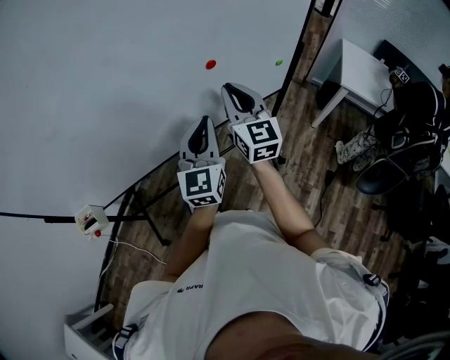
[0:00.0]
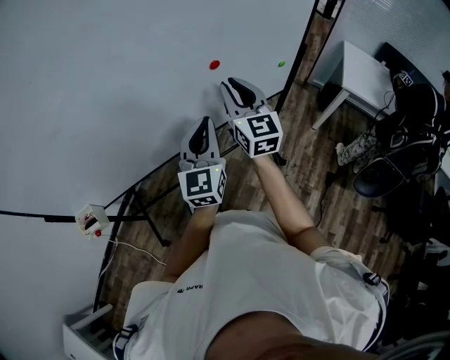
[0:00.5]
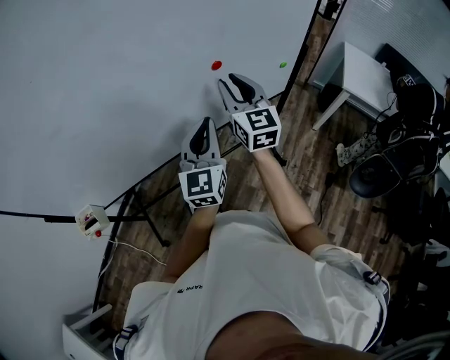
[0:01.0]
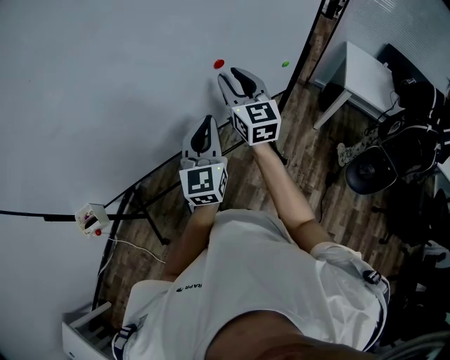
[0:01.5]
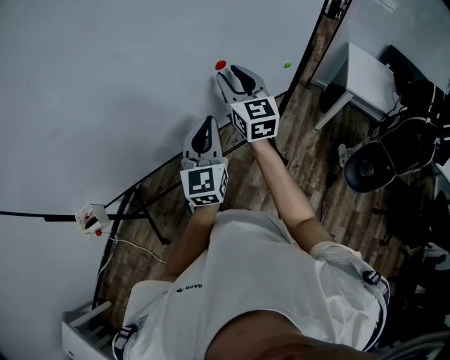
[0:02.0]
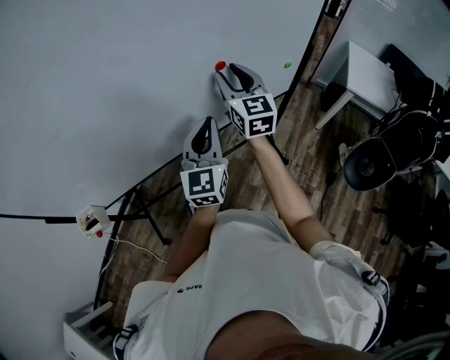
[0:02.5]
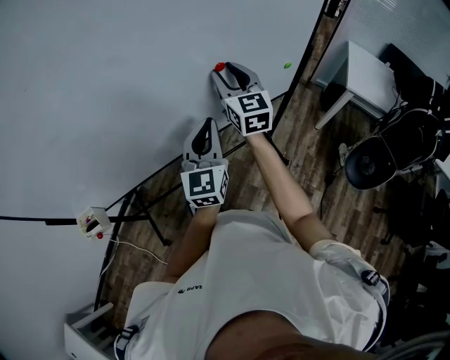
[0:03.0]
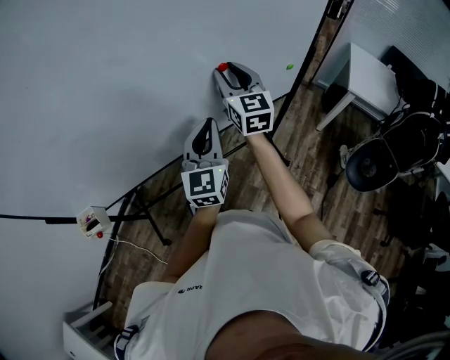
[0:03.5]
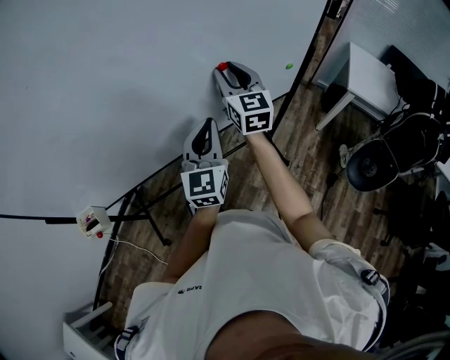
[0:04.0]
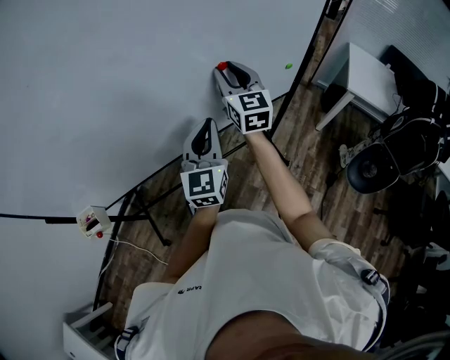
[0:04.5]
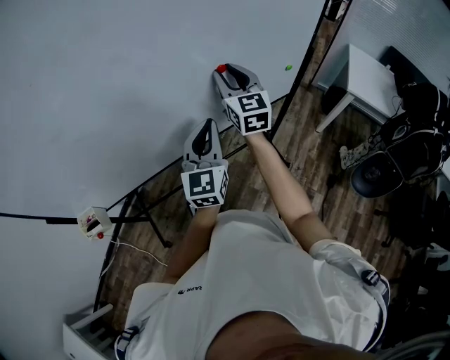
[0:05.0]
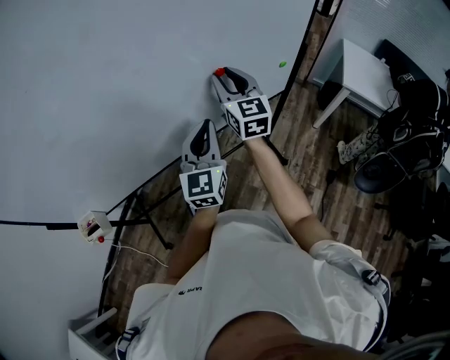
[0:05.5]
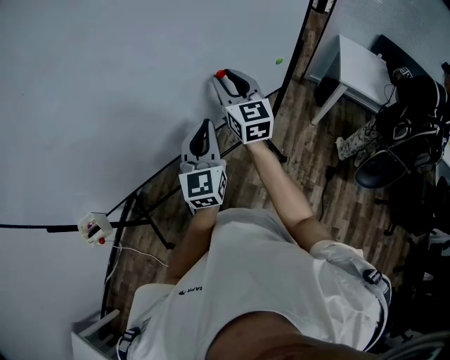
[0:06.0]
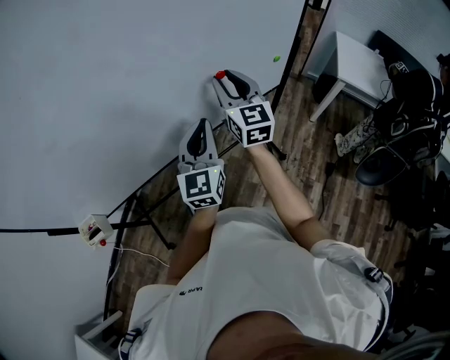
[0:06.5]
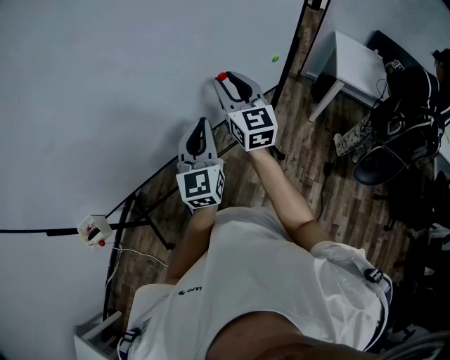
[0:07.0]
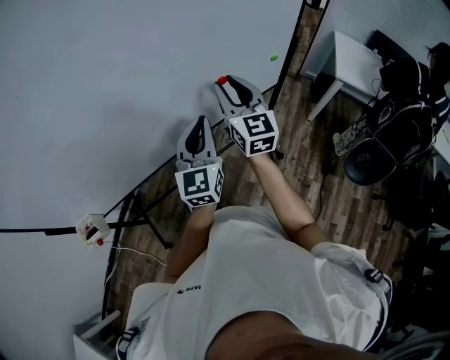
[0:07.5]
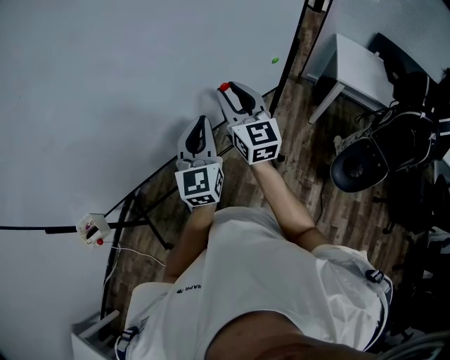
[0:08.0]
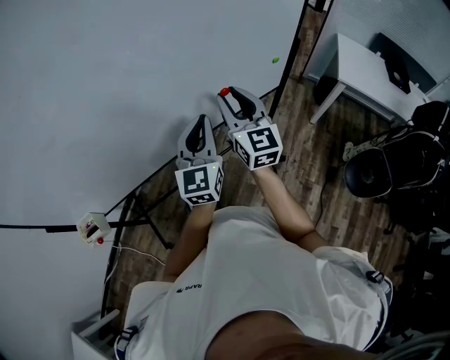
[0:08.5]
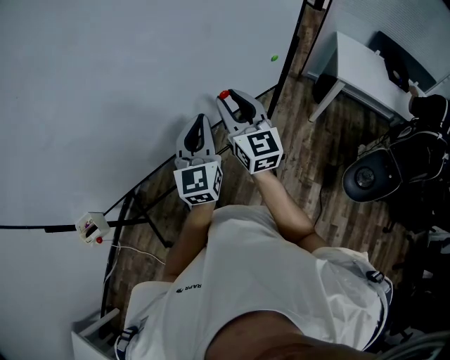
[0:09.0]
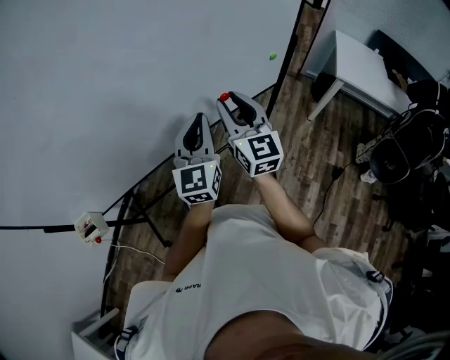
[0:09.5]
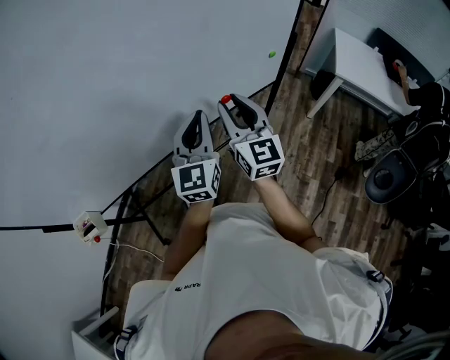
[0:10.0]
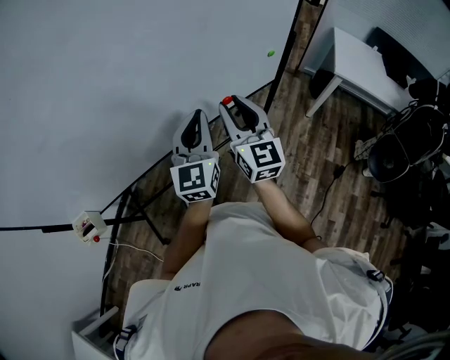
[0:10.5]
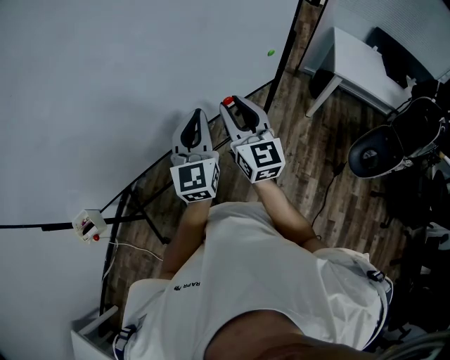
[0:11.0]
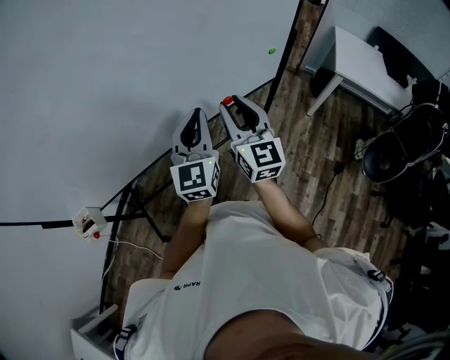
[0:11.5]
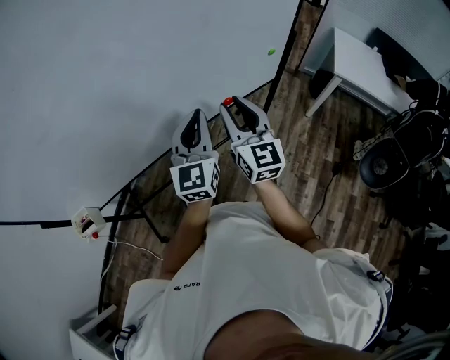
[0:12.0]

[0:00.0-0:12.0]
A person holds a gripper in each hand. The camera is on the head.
0:00.0 to 0:02.0: The right gripper travels forward by about 5 cm, and opens.
0:02.0 to 0:06.0: The grippers make only small movements.
0:06.0 to 0:08.0: The right gripper moves backward, roughly 5 cm.
0:08.0 to 0:10.0: The grippers make only small movements.
0:10.0 to 0:12.0: The grippers move only a little.

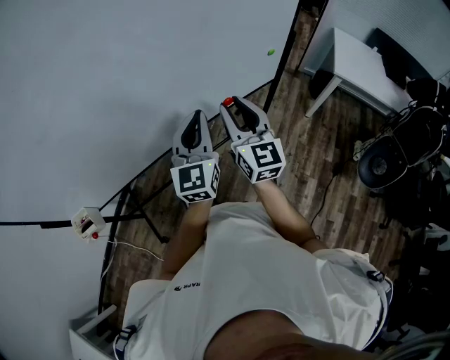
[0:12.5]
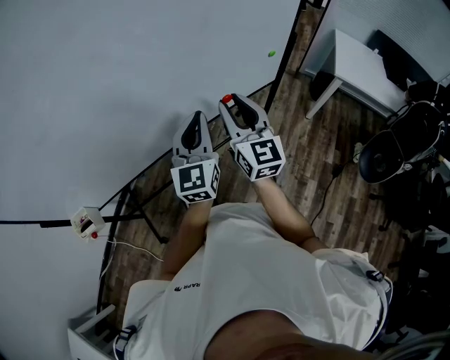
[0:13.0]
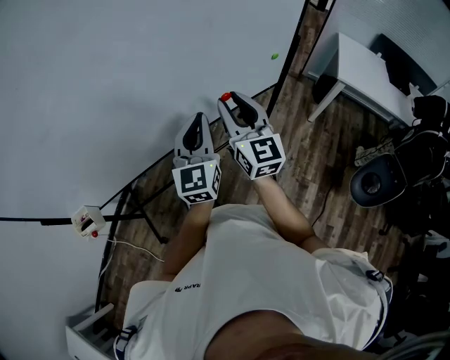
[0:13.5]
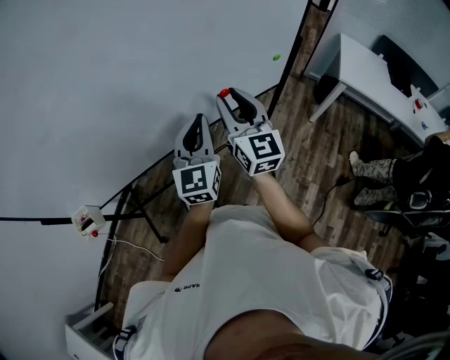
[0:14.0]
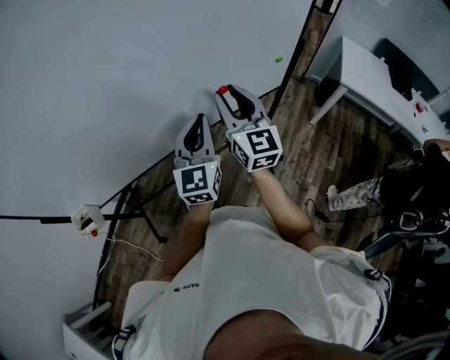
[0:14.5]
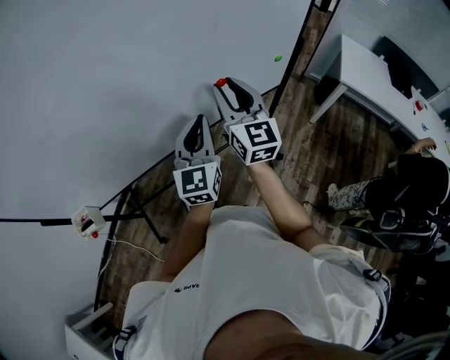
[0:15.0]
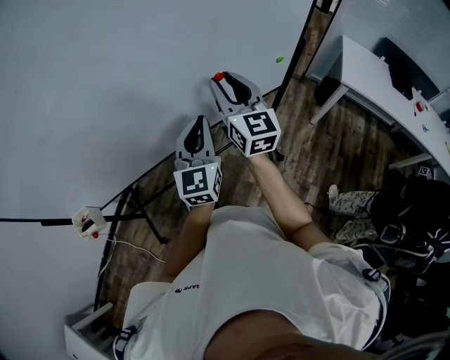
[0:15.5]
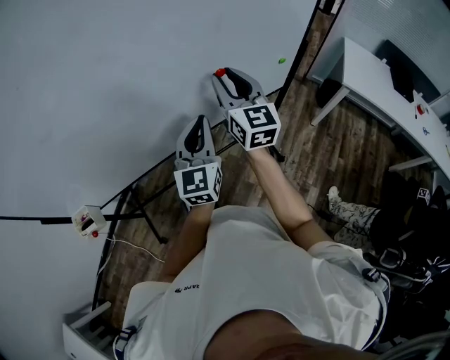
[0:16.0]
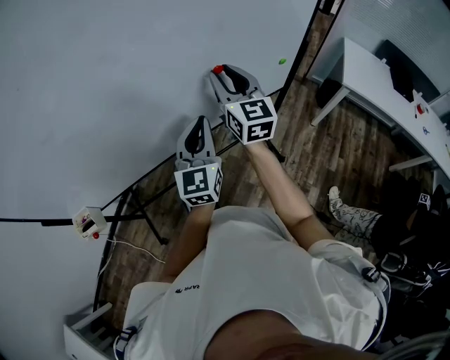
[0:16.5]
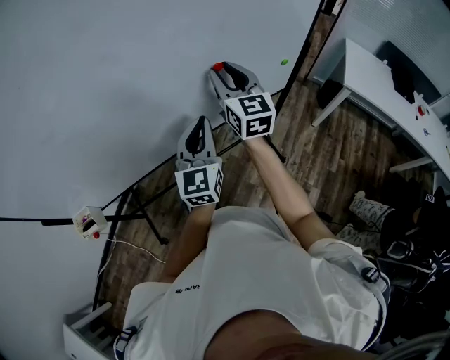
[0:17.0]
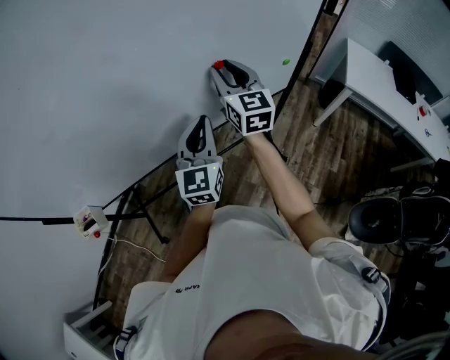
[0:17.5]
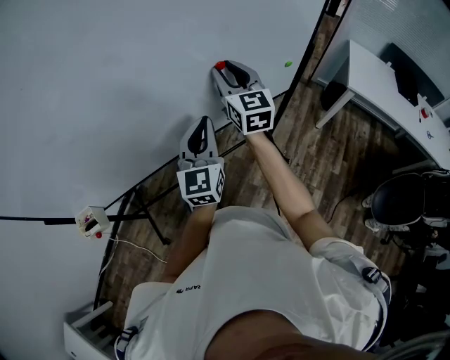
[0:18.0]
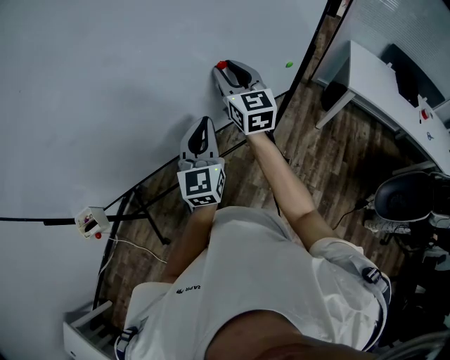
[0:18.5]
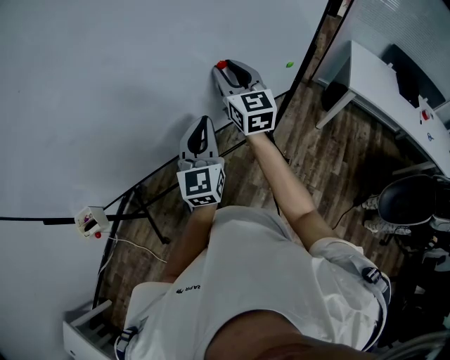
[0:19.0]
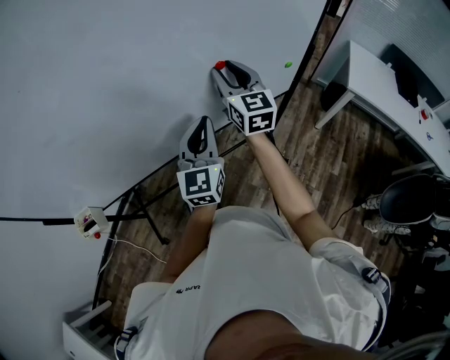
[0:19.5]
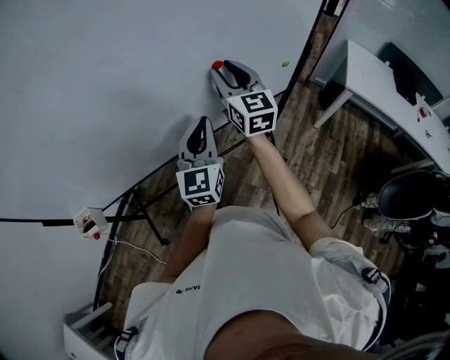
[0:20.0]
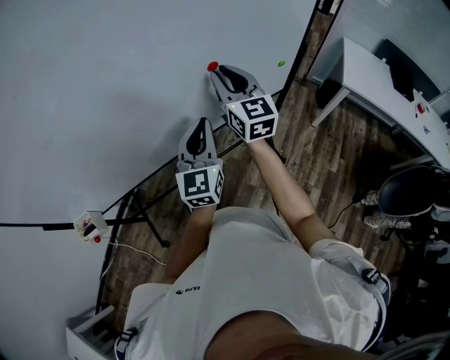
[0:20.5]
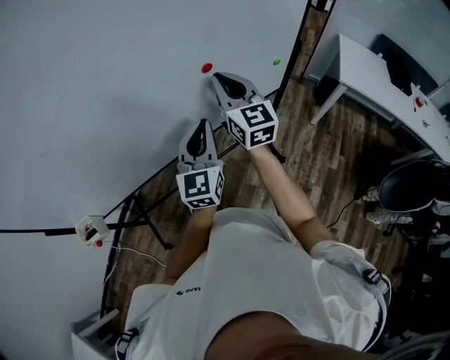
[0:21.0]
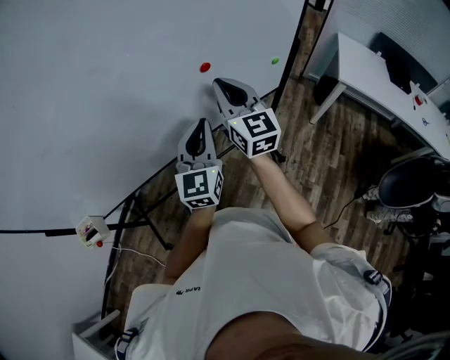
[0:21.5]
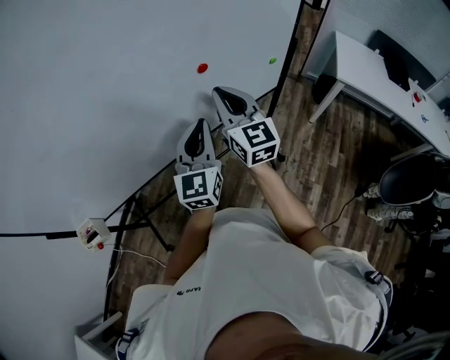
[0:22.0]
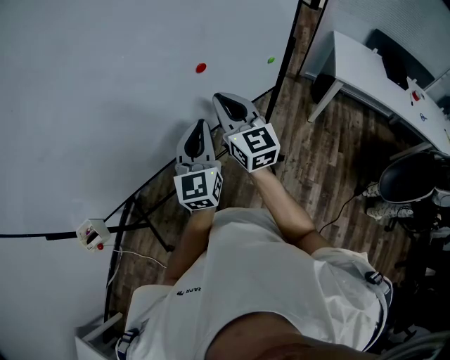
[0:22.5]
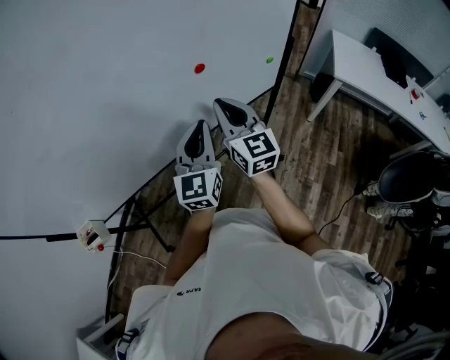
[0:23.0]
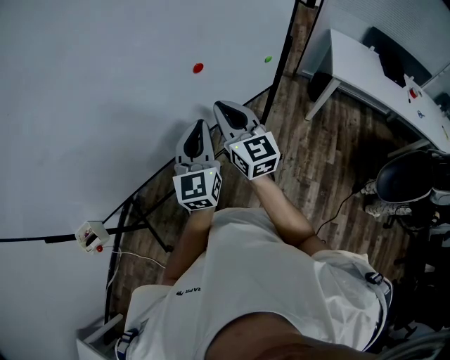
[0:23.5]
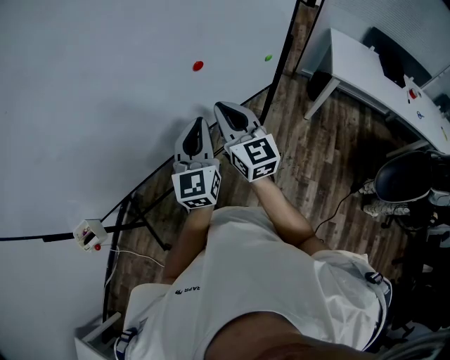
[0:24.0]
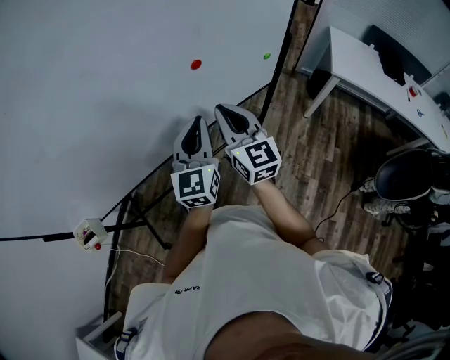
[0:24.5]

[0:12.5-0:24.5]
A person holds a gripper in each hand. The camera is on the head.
0:12.5 to 0:14.5: The right gripper changes place by some 5 cm.
0:14.5 to 0:16.5: The right gripper moves forward, some 5 cm.
0:16.5 to 0:20.5: The grippers move only a little.
0:20.5 to 0:22.5: The right gripper shifts approximately 5 cm backward.
0:22.5 to 0:24.5: There are only small adjustments of the grippers.

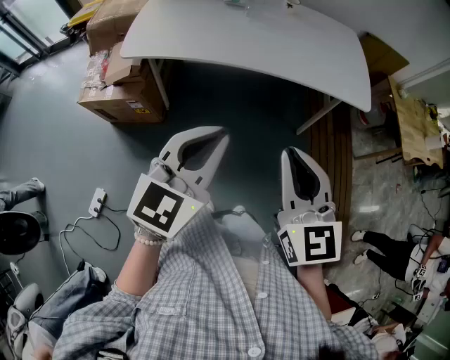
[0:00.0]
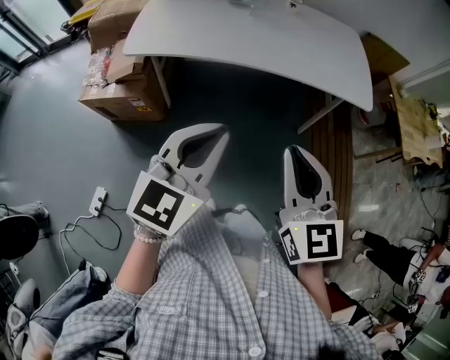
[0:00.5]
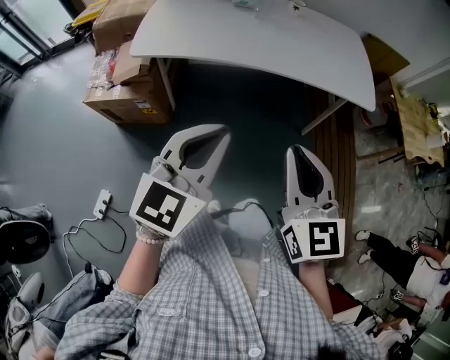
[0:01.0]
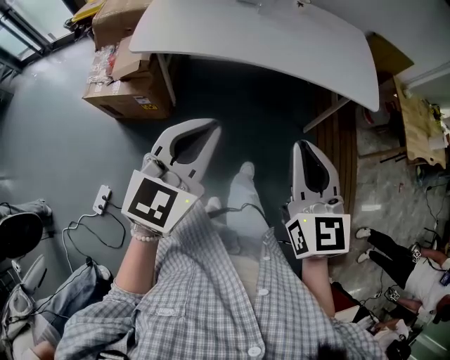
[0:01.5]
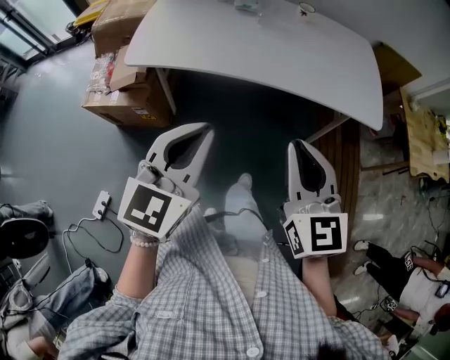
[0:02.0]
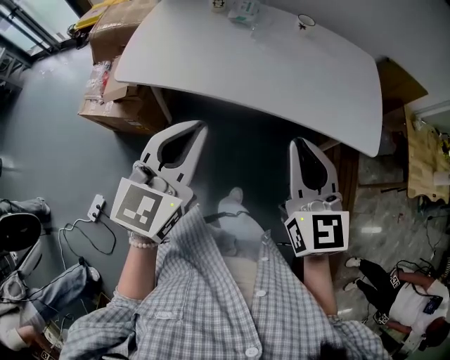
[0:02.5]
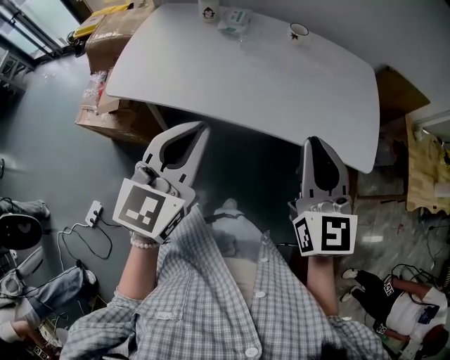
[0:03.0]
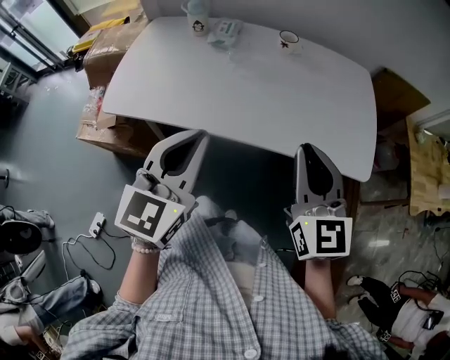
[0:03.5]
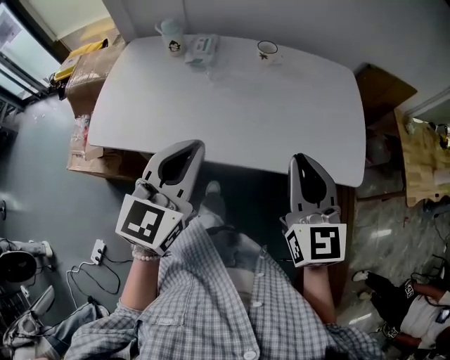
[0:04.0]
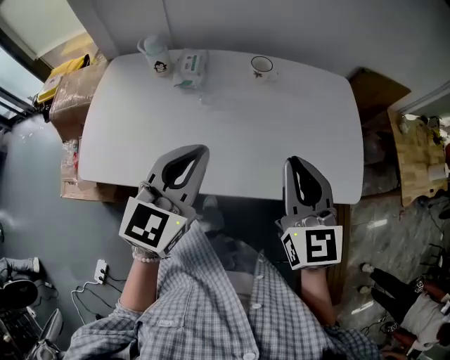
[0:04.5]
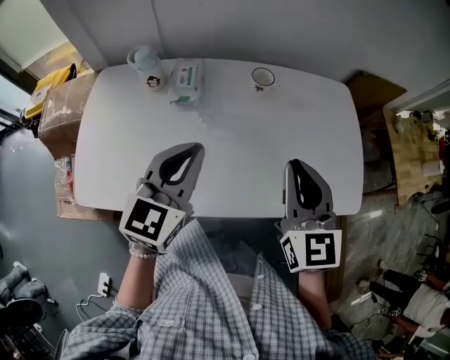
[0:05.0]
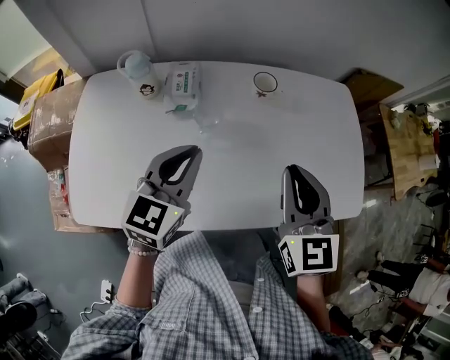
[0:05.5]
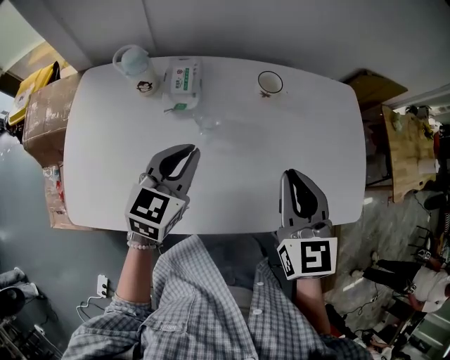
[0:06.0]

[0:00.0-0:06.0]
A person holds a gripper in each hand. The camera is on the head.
0:00.0 to 0:02.0: The right gripper goes approximately 10 cm forward. Meanwhile the left gripper travels forward and to the left by approximately 10 cm.
0:02.0 to 0:04.0: Both grippers travel together forward and to the right, about 25 cm.
0:04.0 to 0:06.0: The left gripper is displaced forward, downward and to the left by roughly 30 cm. The right gripper heads forward and to the left, covering some 20 cm.
